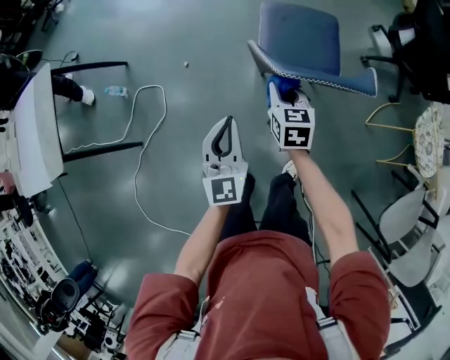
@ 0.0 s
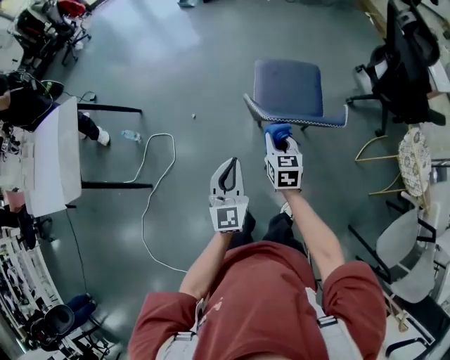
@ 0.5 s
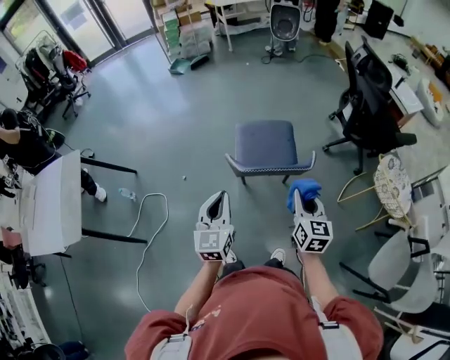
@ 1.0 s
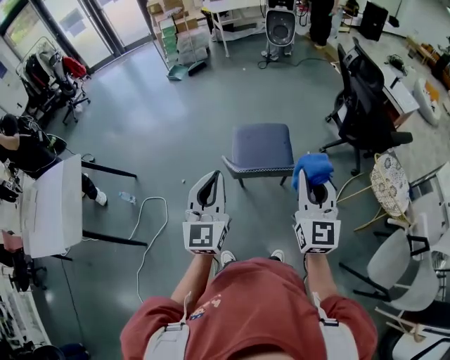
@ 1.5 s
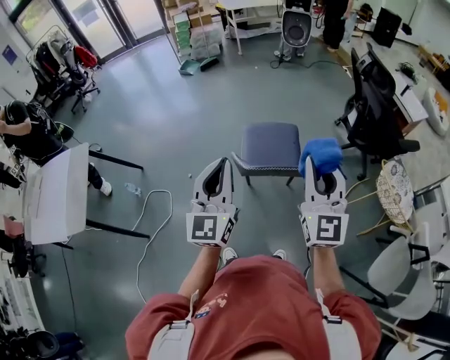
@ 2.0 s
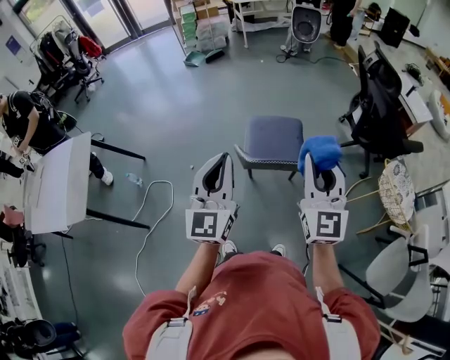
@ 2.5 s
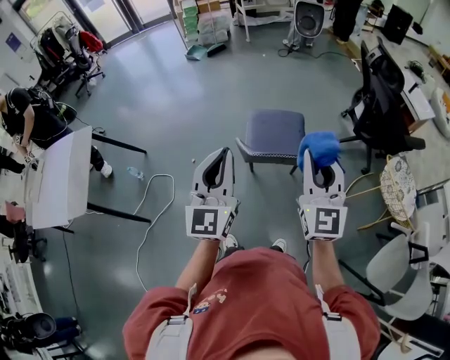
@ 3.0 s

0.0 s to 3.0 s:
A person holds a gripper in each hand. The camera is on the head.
0.0 to 1.5 s: The left gripper moves upward, about 30 cm. The right gripper shifts approximately 40 cm upward and to the right, and tilts its fingers about 40 degrees upward.
1.5 to 3.0 s: The left gripper ends up some 5 cm from where it was. Meanwhile the right gripper ends up some 5 cm from where it was.

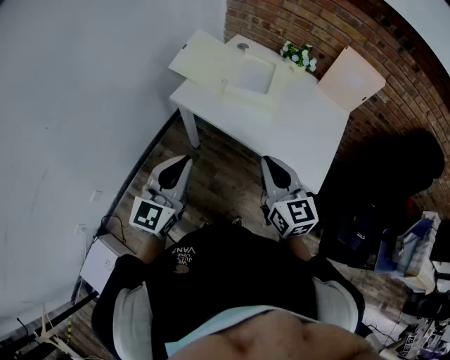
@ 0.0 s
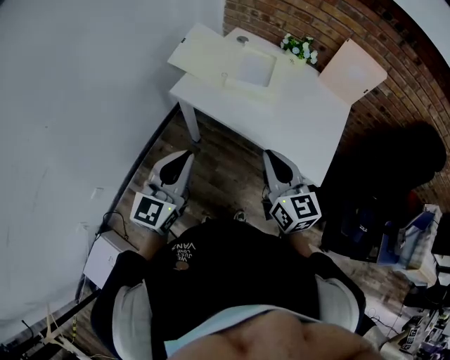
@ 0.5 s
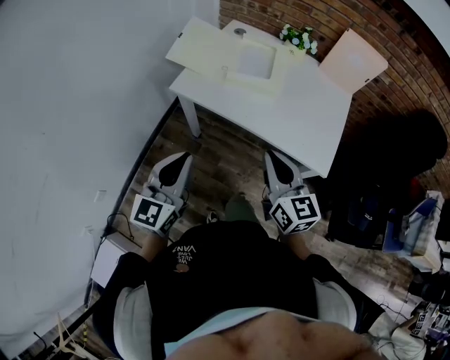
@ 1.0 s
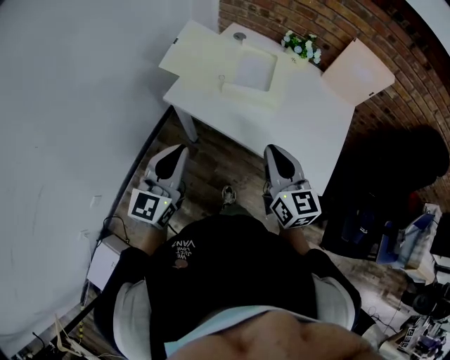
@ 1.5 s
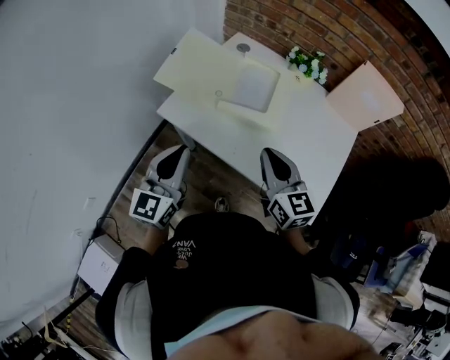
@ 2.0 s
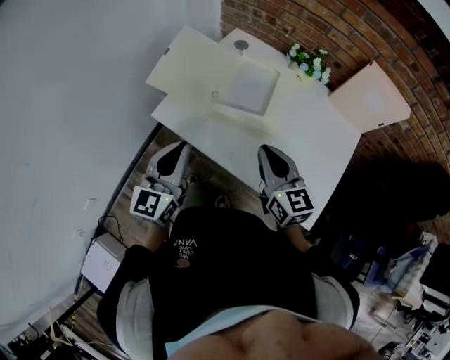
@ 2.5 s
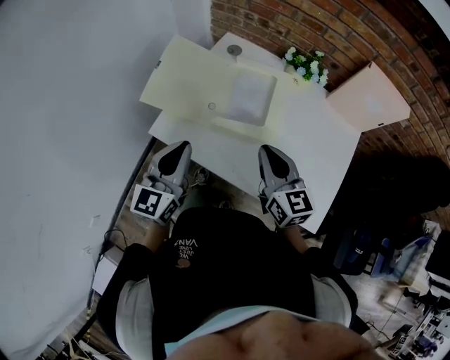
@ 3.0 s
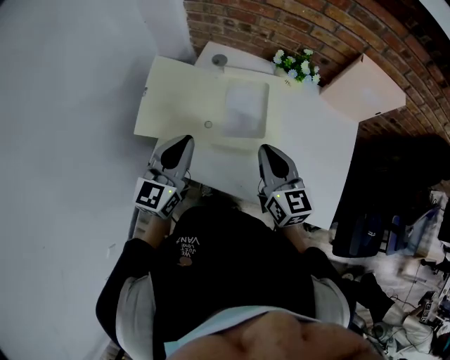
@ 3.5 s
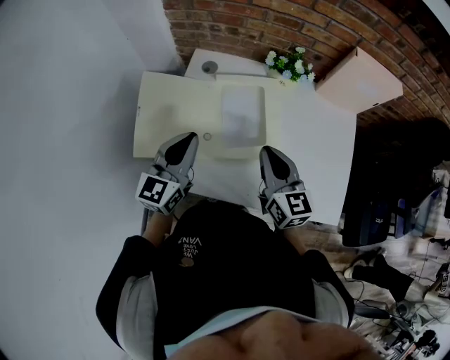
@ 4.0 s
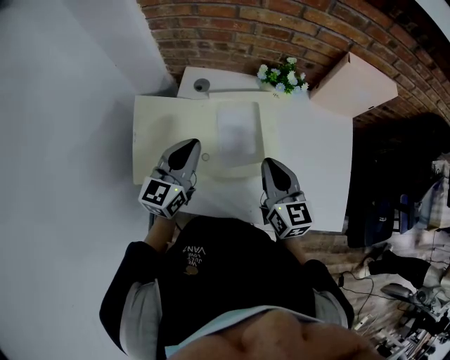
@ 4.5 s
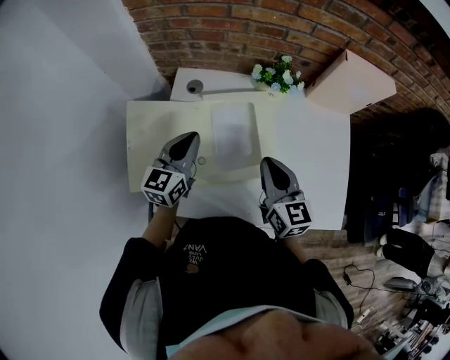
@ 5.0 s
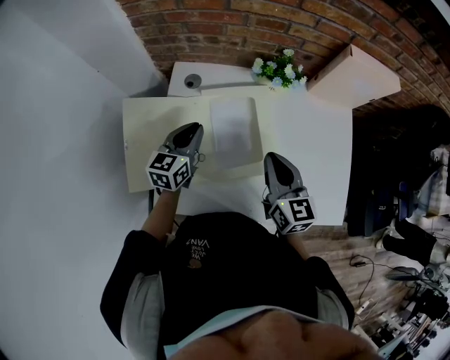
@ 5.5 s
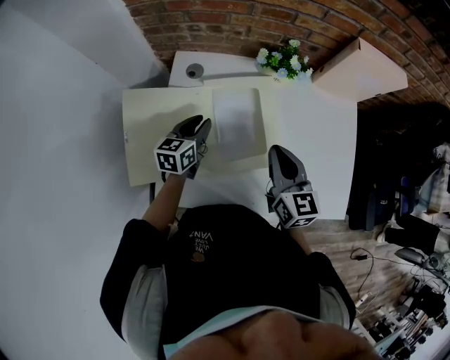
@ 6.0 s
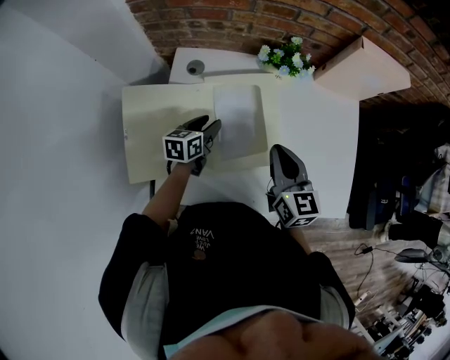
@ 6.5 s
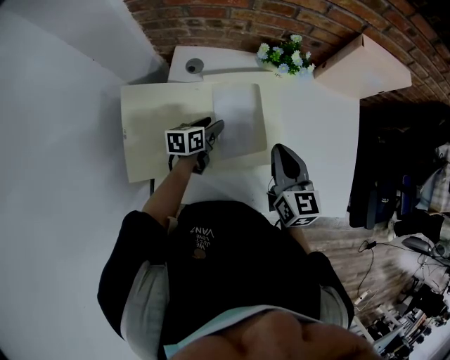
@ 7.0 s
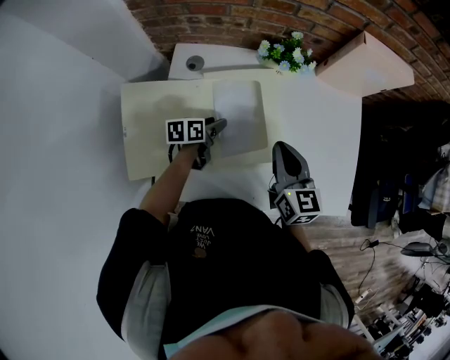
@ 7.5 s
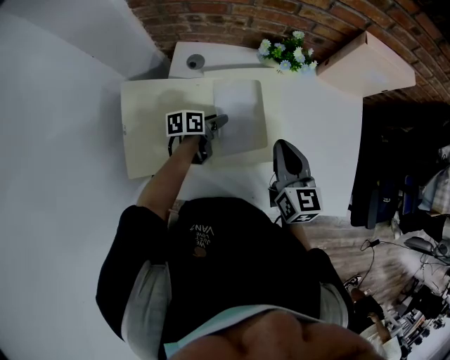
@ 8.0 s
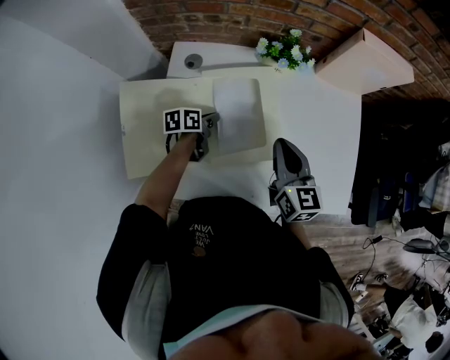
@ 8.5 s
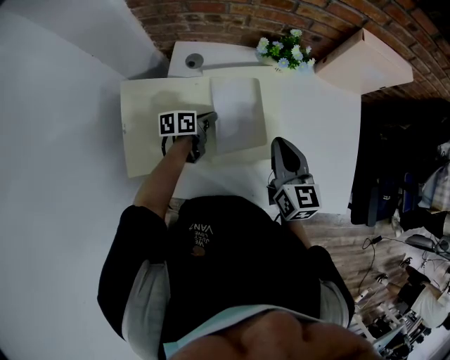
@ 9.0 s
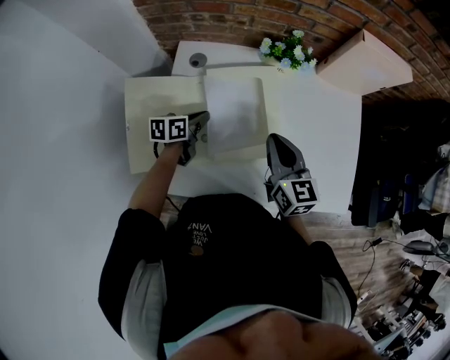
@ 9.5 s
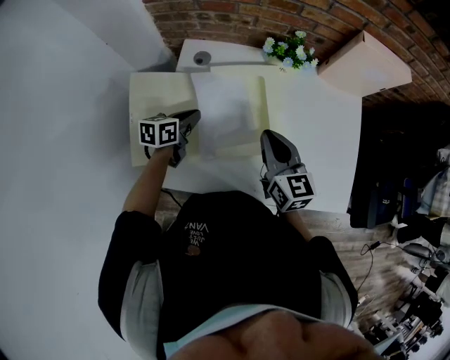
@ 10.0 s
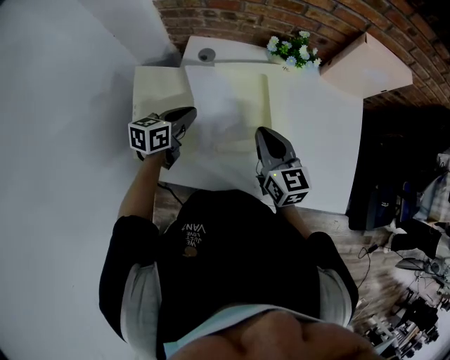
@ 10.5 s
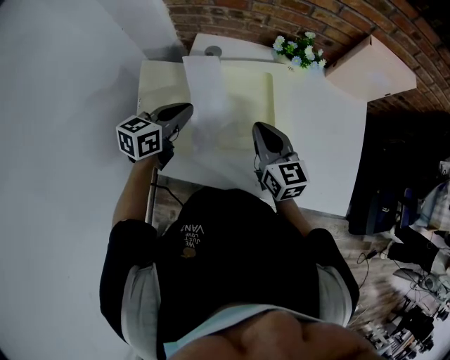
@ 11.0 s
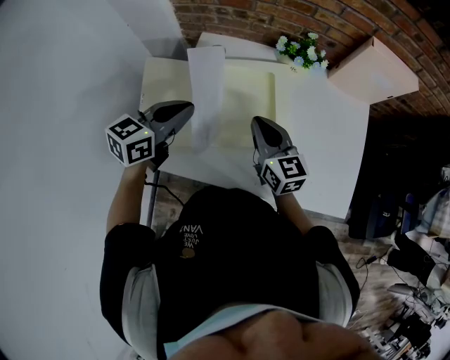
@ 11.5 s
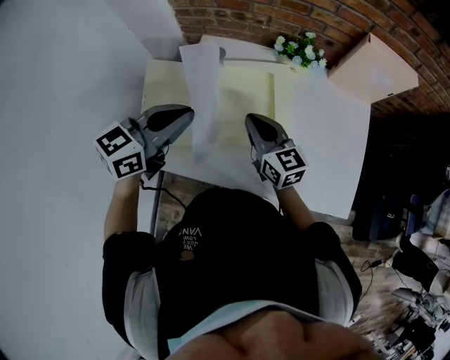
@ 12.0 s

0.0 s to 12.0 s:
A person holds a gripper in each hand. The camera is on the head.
0.0 to 2.0 s: Both grippers travel together forward, approximately 15 cm.
2.0 to 4.0 s: The left gripper heads forward, covering roughly 25 cm, and rotates roughly 20 degrees; the right gripper moves forward, some 15 cm, and turns by roughly 20 degrees.
4.0 to 6.0 s: The left gripper is displaced downward and forward by some 20 cm, swivels some 30 degrees, and opens its fingers. Meanwhile the right gripper travels forward by approximately 5 cm.
6.0 to 8.0 s: The left gripper heads downward, covering approximately 10 cm, rotates roughly 40 degrees, and opens.
8.0 to 10.0 s: The left gripper shifts about 10 cm to the left and upward, and closes its fingers, while the right gripper ends up approximately 5 cm from where it was.
10.0 to 12.0 s: The left gripper goes some 25 cm upward, and swivels roughly 30 degrees; the right gripper goes approximately 5 cm to the left.

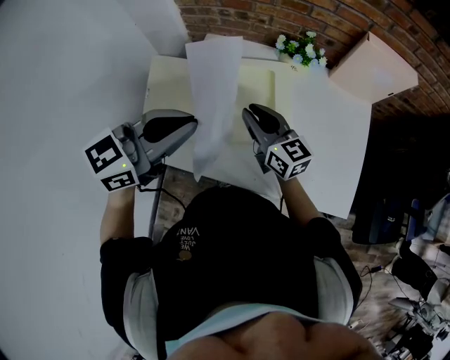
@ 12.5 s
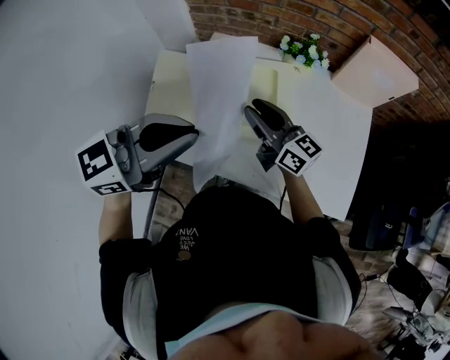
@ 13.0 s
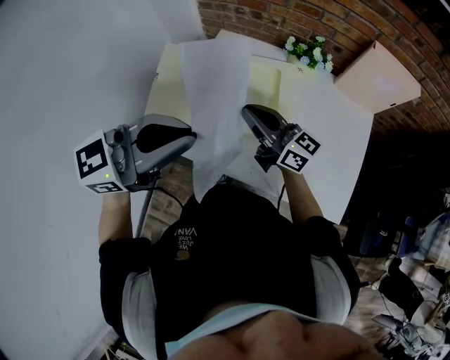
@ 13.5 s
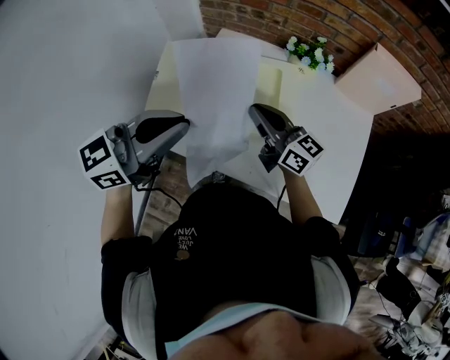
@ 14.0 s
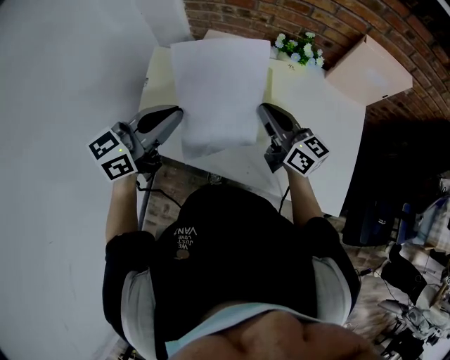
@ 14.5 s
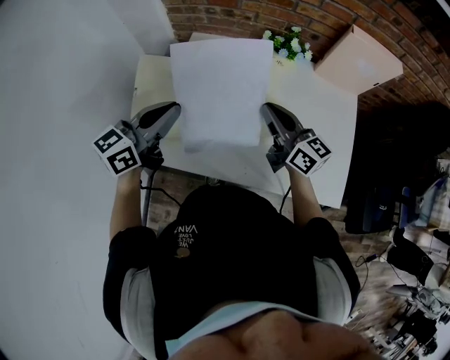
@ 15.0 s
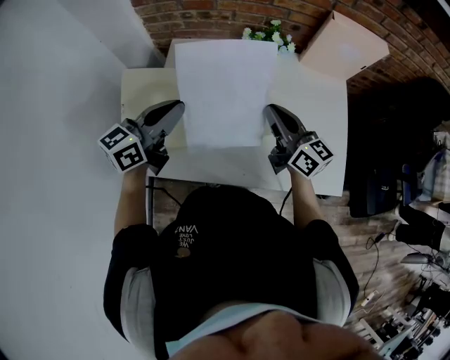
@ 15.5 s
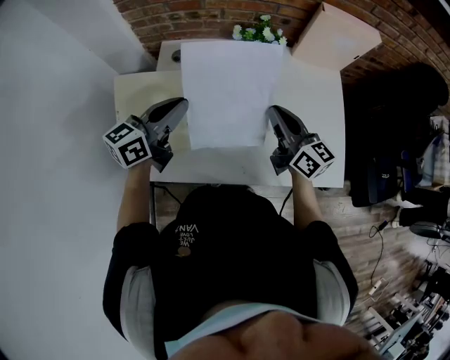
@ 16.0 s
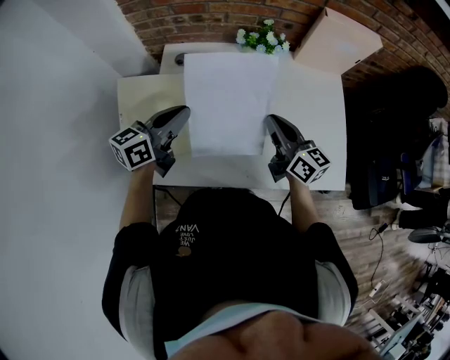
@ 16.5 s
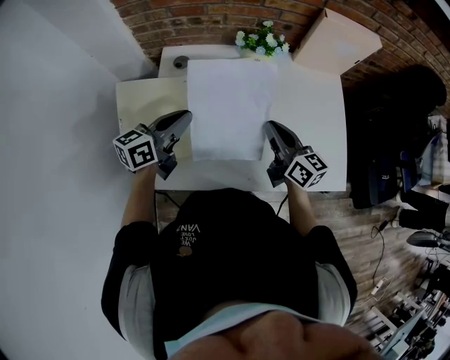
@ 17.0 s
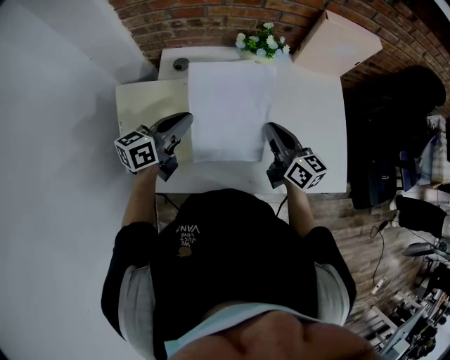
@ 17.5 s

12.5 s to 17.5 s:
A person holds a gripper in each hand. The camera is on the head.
12.5 to 15.0 s: The right gripper goes roughly 5 cm to the right; the left gripper shifts about 5 cm downward.
15.0 to 17.5 s: The right gripper travels downward by about 5 cm, and turns by roughly 20 degrees. The left gripper travels downward and forward by approximately 15 cm.

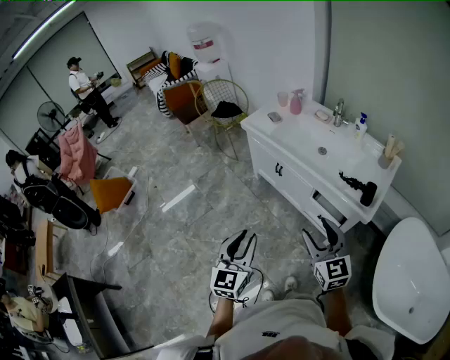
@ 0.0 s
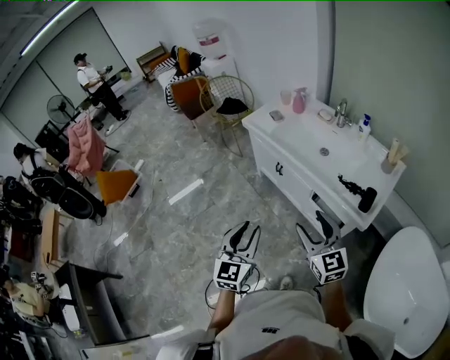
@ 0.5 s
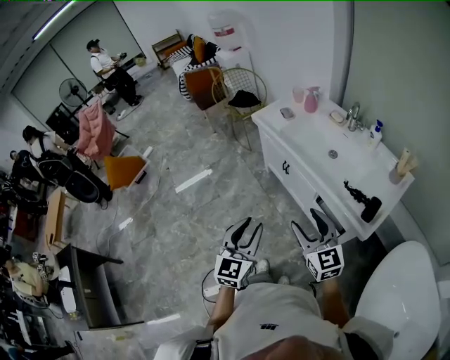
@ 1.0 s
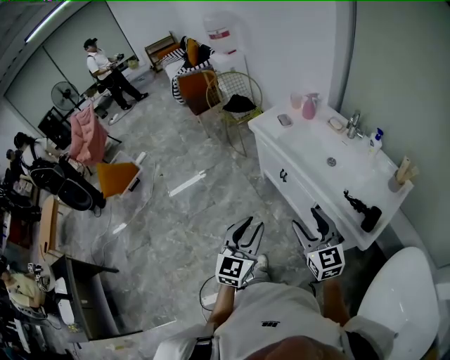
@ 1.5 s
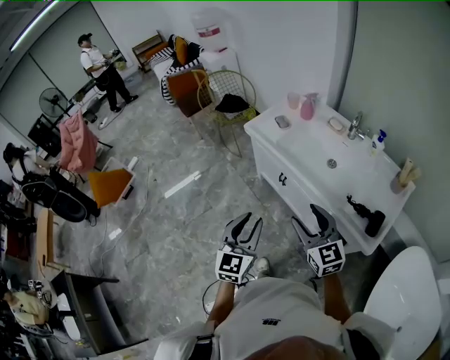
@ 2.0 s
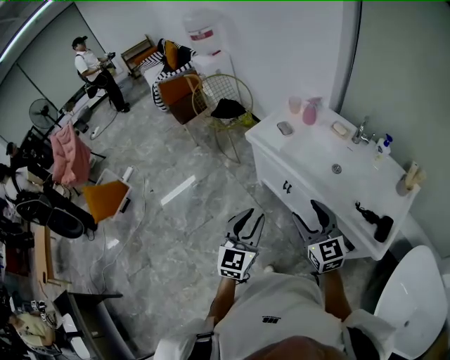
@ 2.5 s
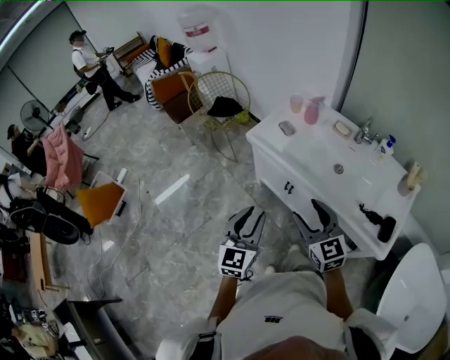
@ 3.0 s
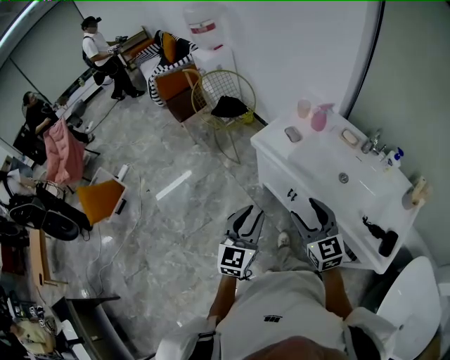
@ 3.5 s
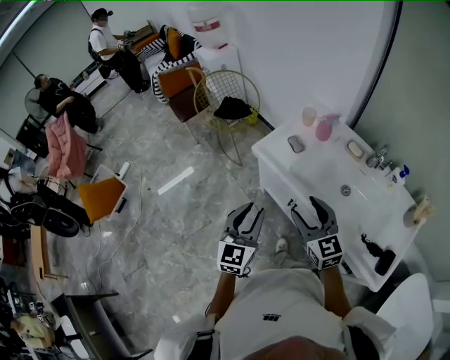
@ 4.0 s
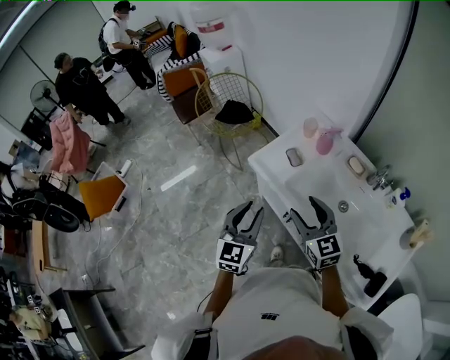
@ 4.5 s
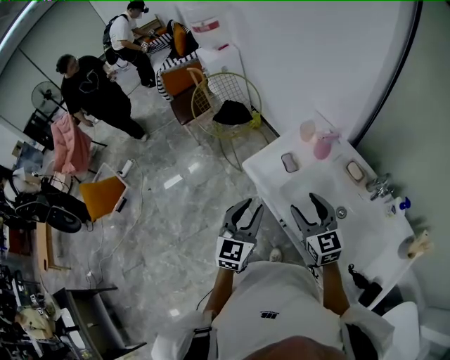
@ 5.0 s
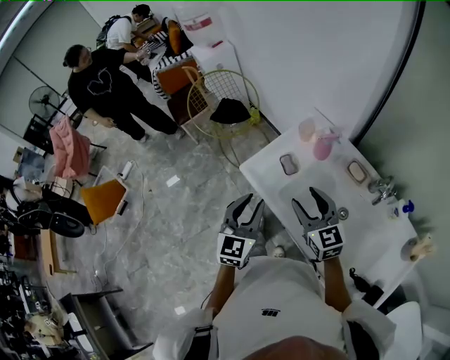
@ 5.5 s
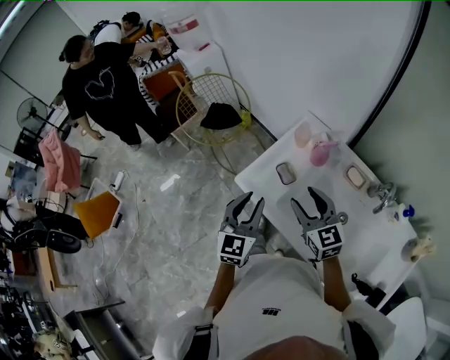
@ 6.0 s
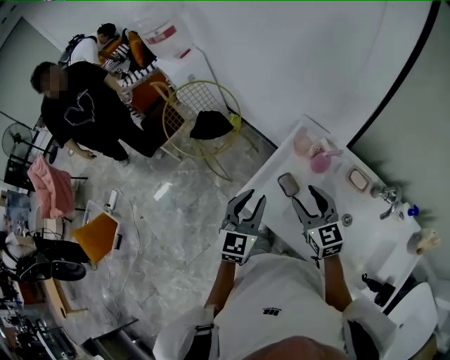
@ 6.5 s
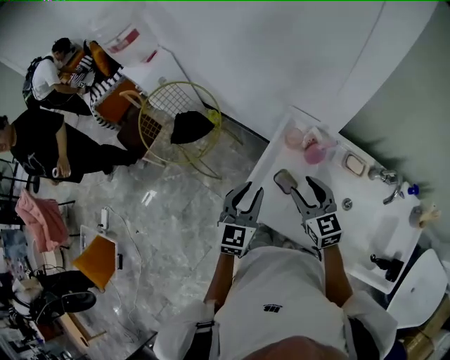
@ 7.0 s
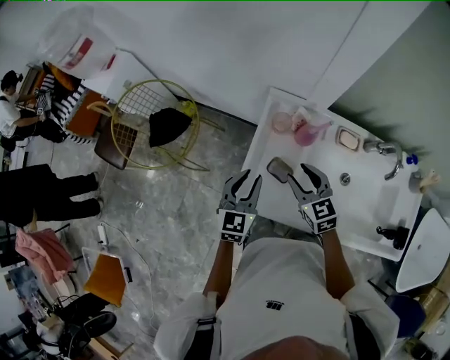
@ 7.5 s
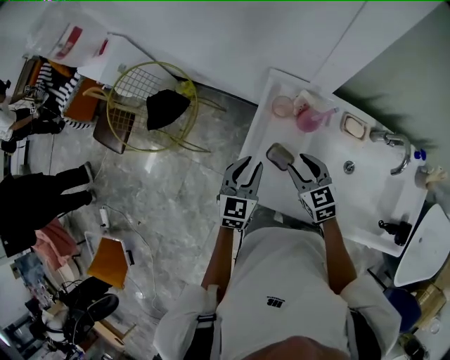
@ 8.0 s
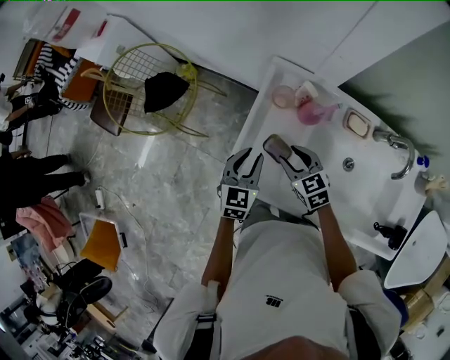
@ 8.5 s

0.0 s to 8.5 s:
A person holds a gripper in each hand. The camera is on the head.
0.0 to 2.0 s: Both grippers move forward, approximately 20 cm.
2.0 to 4.0 s: Both grippers travel together forward, some 25 cm.
4.0 to 6.5 s: Both grippers travel together forward, roughly 35 cm.
6.5 to 8.5 s: The two grippers go roughly 20 cm downward and forward. The right gripper rotates approximately 20 degrees. Meanwhile the left gripper swivels approximately 20 degrees.
